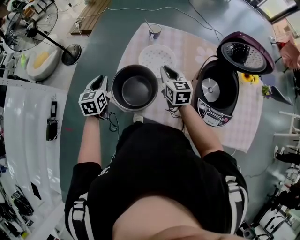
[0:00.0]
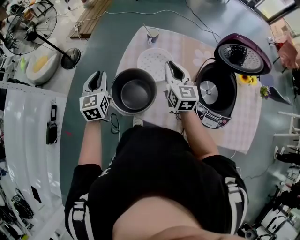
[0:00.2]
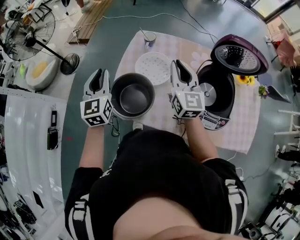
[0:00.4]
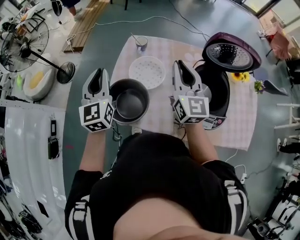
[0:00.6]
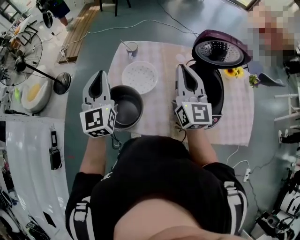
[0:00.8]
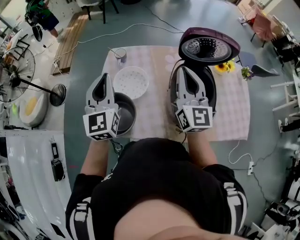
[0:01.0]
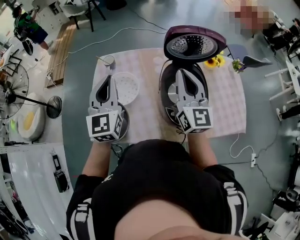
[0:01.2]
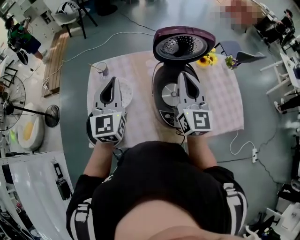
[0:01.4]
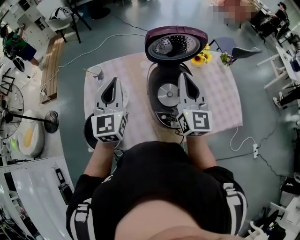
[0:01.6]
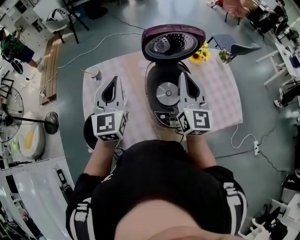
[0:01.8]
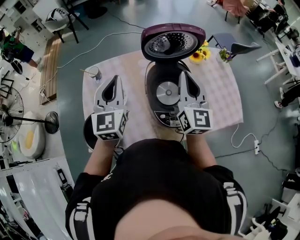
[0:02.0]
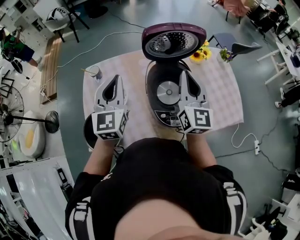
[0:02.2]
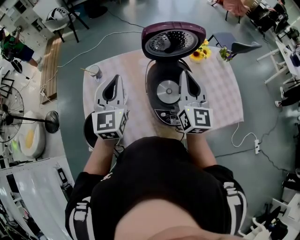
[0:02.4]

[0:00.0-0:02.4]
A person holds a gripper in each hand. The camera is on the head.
0:00.0 to 0:01.2: The left gripper heads to the right and upward, covering some 35 cm, and tips its fingers upward by roughly 30 degrees, while the right gripper heads upward and to the right, covering approximately 30 cm, and tilts its fingers about 30 degrees upward.
0:01.2 to 0:02.4: Both grippers travel together to the right, approximately 10 cm.

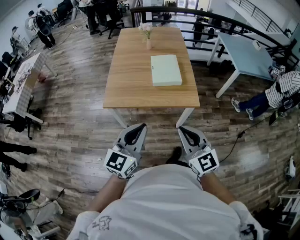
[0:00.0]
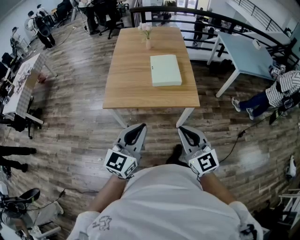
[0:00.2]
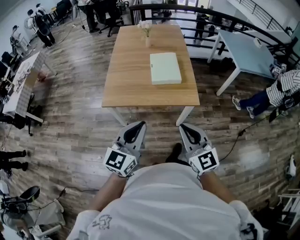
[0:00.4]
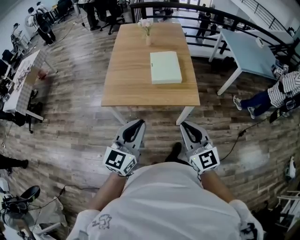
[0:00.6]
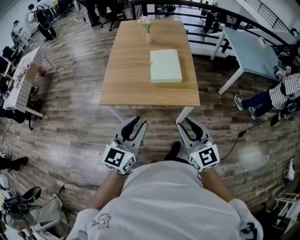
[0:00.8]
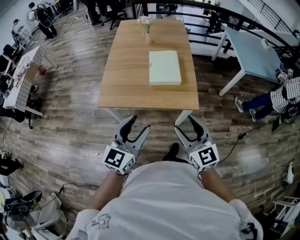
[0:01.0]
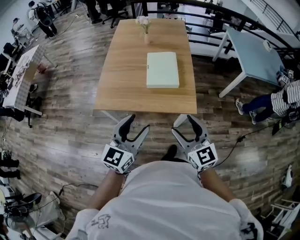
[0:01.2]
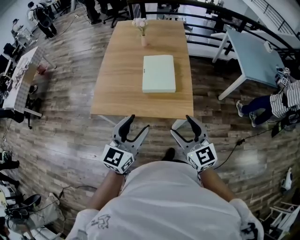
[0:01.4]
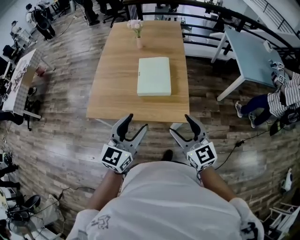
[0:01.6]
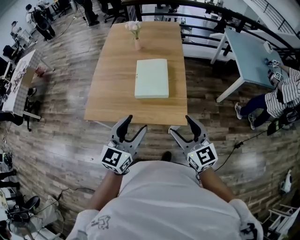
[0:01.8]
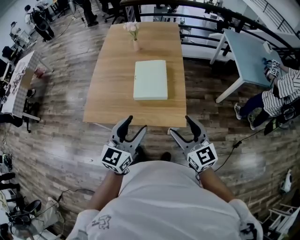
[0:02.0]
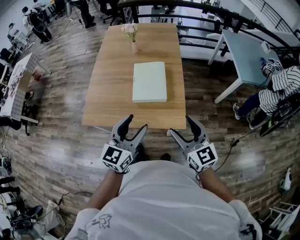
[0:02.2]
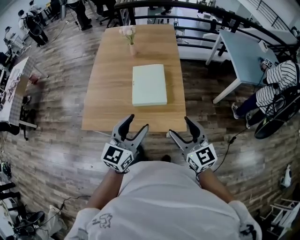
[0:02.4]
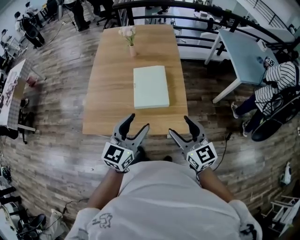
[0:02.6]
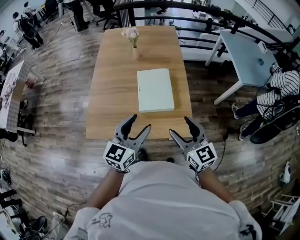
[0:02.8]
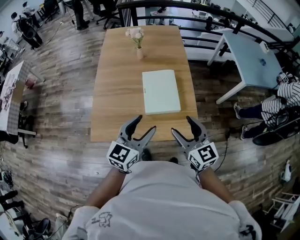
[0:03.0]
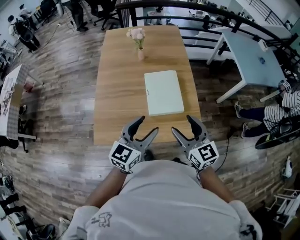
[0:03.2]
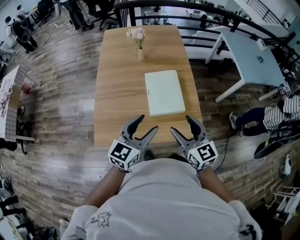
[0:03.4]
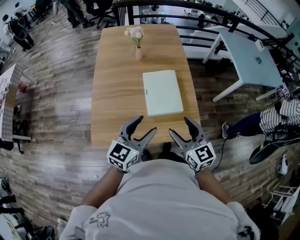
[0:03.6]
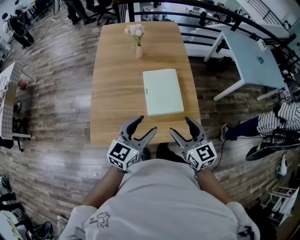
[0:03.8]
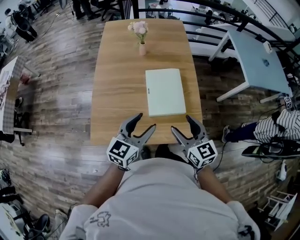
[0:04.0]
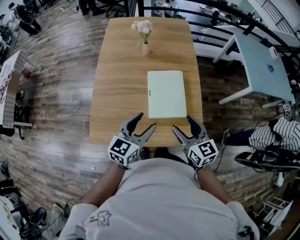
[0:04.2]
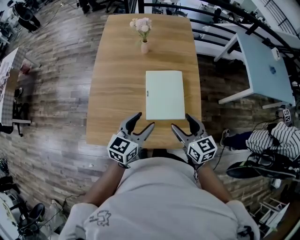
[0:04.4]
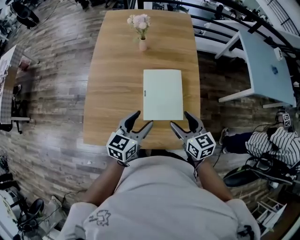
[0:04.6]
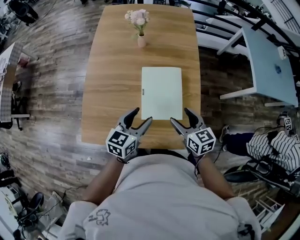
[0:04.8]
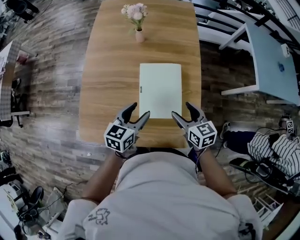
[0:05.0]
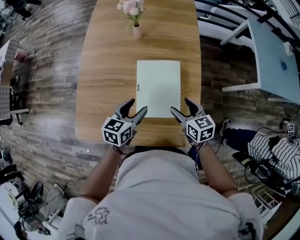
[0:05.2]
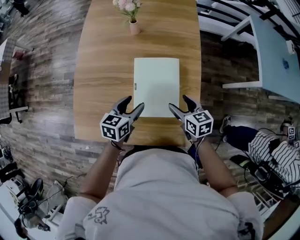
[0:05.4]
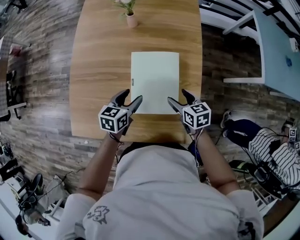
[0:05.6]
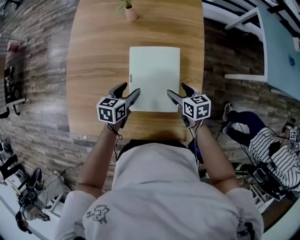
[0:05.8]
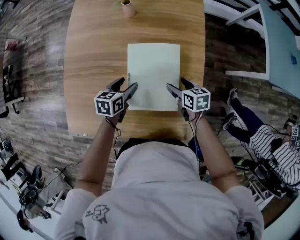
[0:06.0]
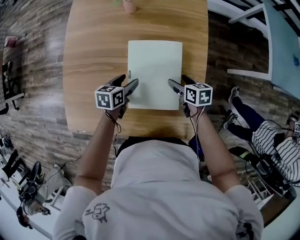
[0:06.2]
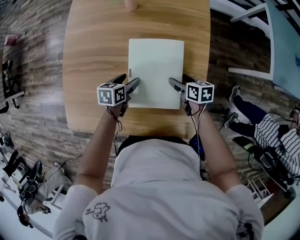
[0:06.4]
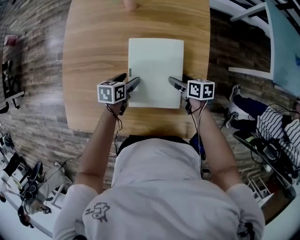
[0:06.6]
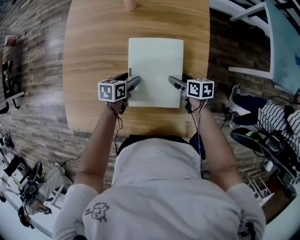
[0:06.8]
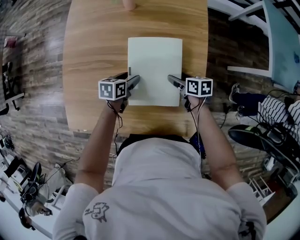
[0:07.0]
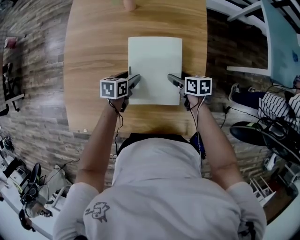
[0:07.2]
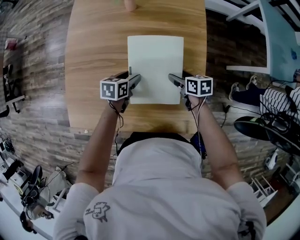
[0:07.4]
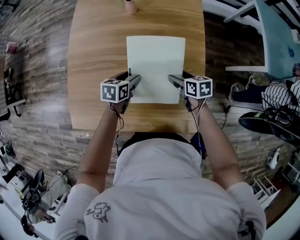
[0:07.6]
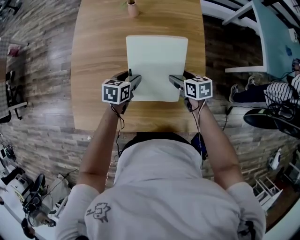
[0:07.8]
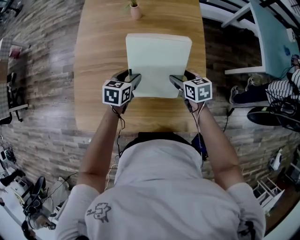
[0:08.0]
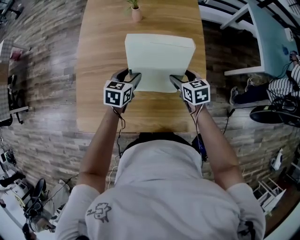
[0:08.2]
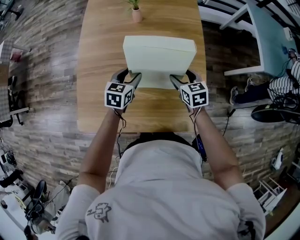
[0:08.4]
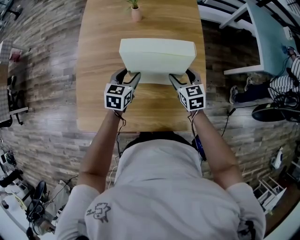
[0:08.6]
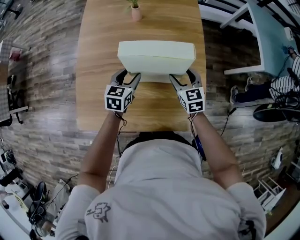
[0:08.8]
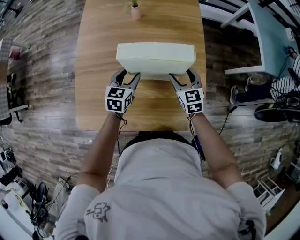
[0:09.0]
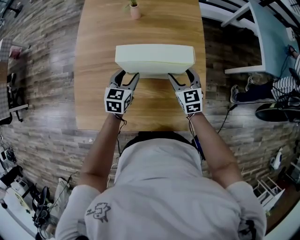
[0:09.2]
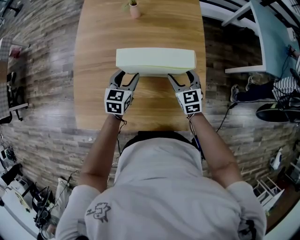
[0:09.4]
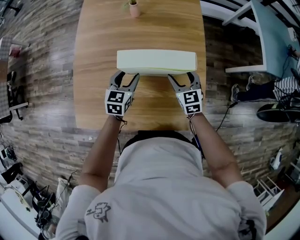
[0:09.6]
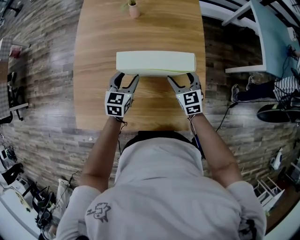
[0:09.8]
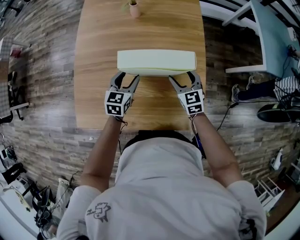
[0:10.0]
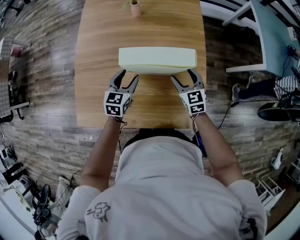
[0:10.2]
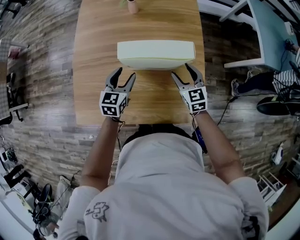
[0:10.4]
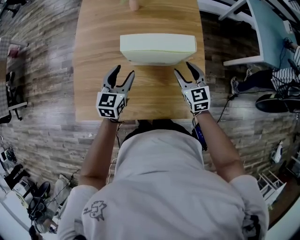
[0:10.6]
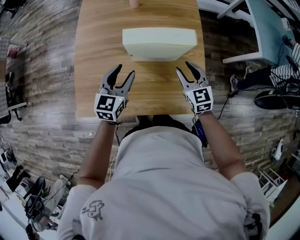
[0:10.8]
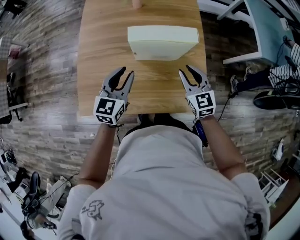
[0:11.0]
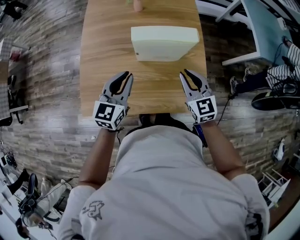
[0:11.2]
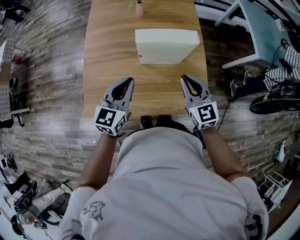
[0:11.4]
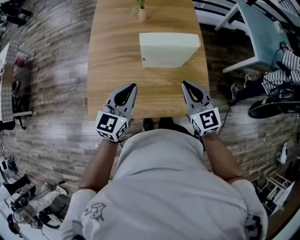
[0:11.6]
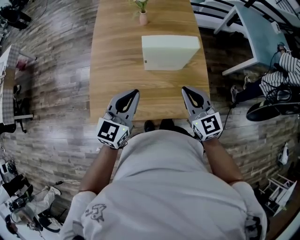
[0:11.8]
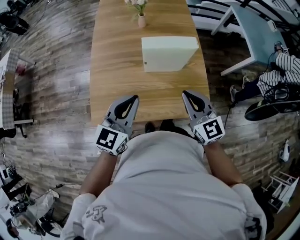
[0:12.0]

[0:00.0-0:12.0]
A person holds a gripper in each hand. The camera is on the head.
0:00.0 to 0:01.6: The grippers both shift forward and to the right by approximately 25 cm. The right gripper opens its fingers, while the left gripper opens.
0:01.6 to 0:03.0: The grippers both shift forward and to the left by approximately 15 cm.
0:03.0 to 0:04.4: The two grippers go about 15 cm forward and downward.
0:04.4 to 0:06.0: Both grippers move downward and forward, roughly 25 cm. The right gripper rotates approximately 30 degrees. Meanwhile the left gripper rotates some 30 degrees.
0:06.0 to 0:07.6: The grippers stay close to where they were, moving slightly.
0:07.6 to 0:09.0: Both grippers travel together upward, roughly 10 cm. The right gripper changes its angle by approximately 40 degrees; the left gripper turns by some 30 degrees.
0:09.0 to 0:10.4: The grippers move only a little.
0:10.4 to 0:12.0: The right gripper shifts some 30 cm upward, backward and to the left, and closes. Meanwhile the left gripper shifts approximately 25 cm upward and backward, swivels about 20 degrees, and closes up.

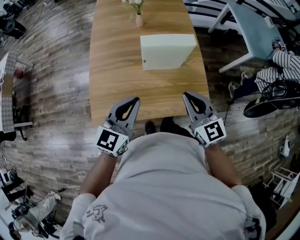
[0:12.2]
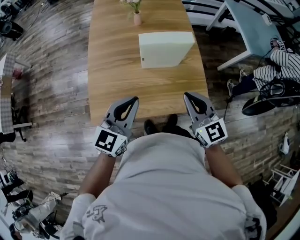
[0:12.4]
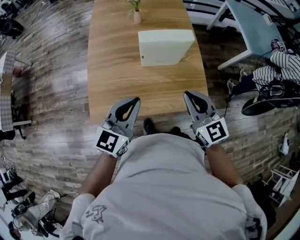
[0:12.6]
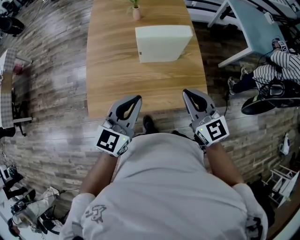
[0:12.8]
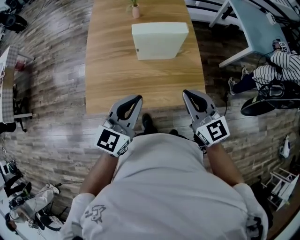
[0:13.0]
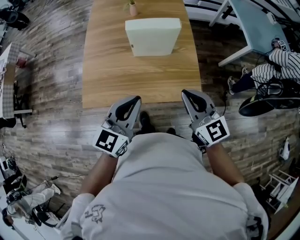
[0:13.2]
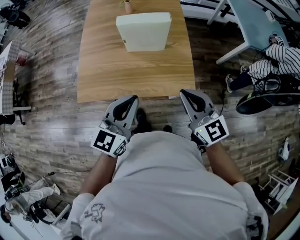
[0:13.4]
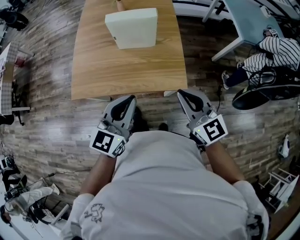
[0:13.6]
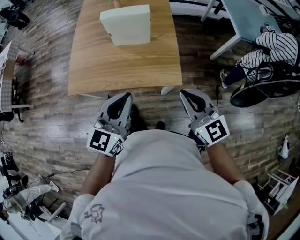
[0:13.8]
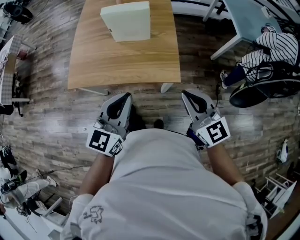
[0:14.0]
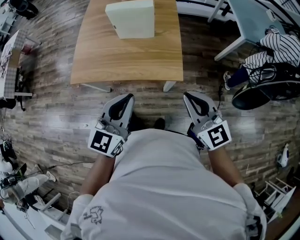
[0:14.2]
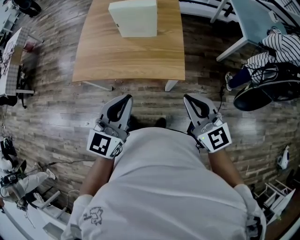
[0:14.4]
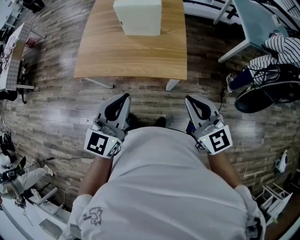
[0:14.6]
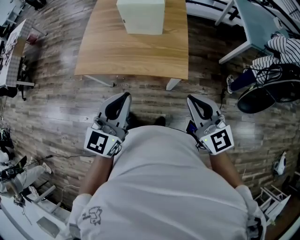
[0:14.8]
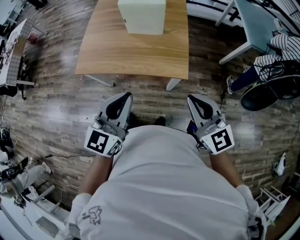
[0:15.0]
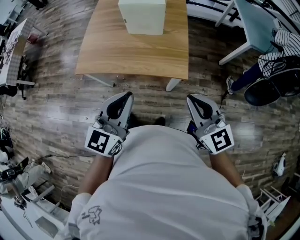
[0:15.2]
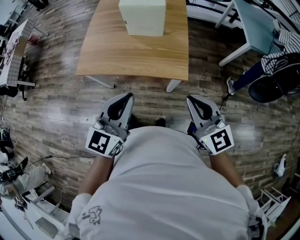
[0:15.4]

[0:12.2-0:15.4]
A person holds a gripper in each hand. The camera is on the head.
0:12.2 to 0:13.8: Both grippers travel together to the right and backward, roughly 25 cm.
0:13.8 to 0:15.4: Both grippers travel together backward, about 10 cm.

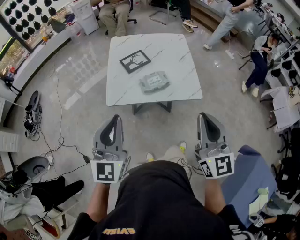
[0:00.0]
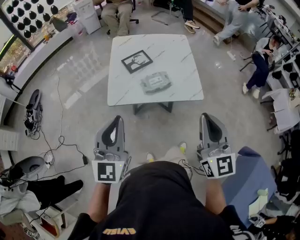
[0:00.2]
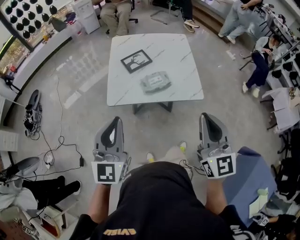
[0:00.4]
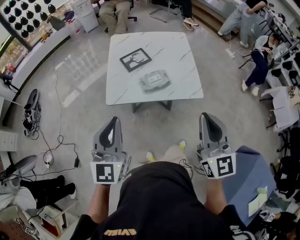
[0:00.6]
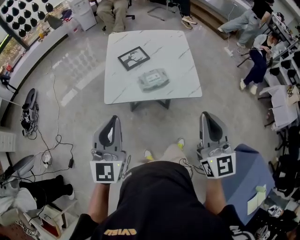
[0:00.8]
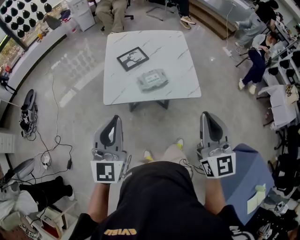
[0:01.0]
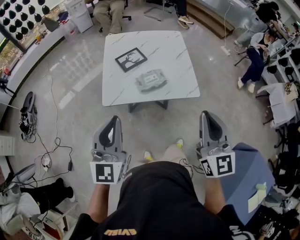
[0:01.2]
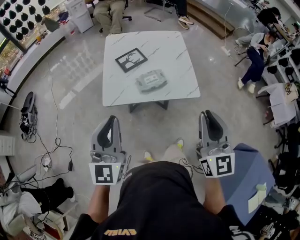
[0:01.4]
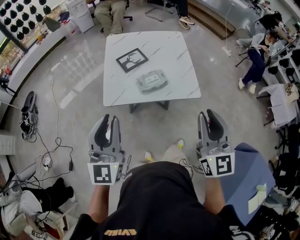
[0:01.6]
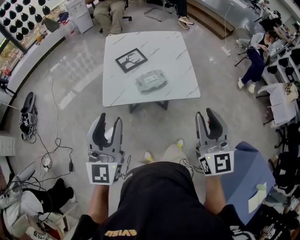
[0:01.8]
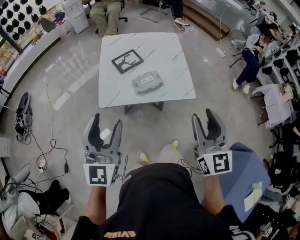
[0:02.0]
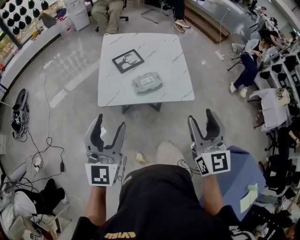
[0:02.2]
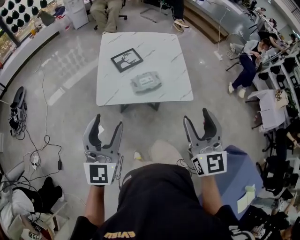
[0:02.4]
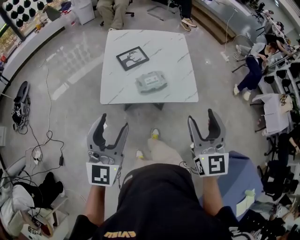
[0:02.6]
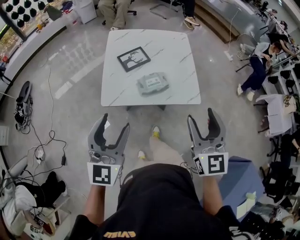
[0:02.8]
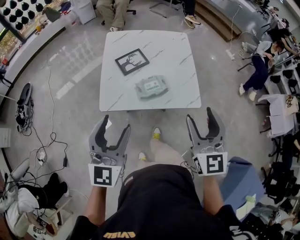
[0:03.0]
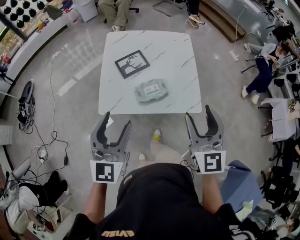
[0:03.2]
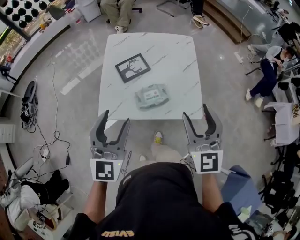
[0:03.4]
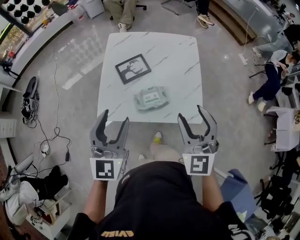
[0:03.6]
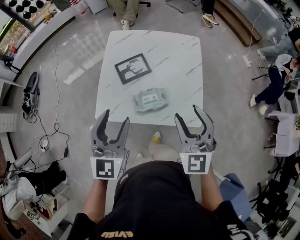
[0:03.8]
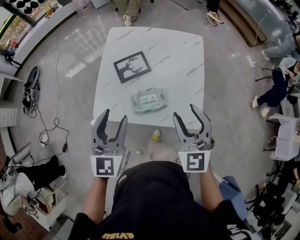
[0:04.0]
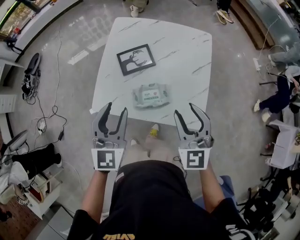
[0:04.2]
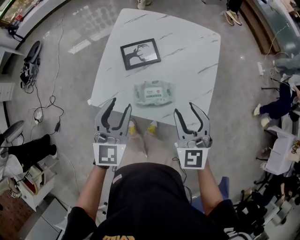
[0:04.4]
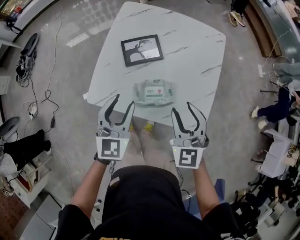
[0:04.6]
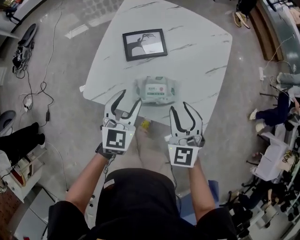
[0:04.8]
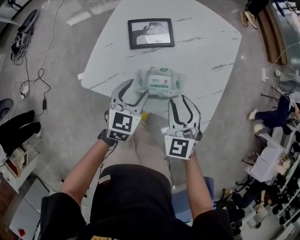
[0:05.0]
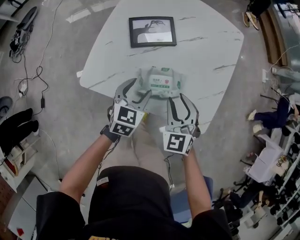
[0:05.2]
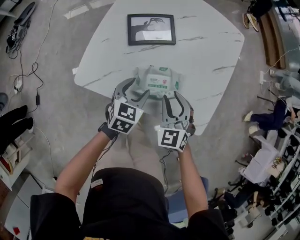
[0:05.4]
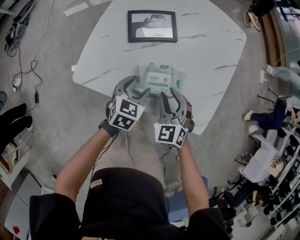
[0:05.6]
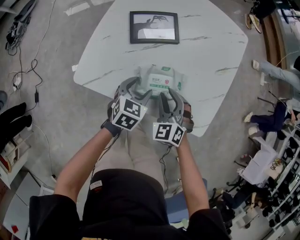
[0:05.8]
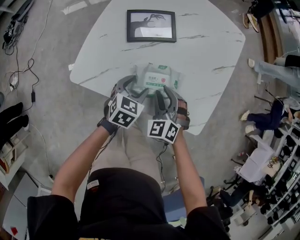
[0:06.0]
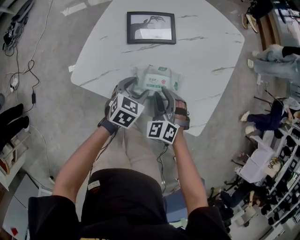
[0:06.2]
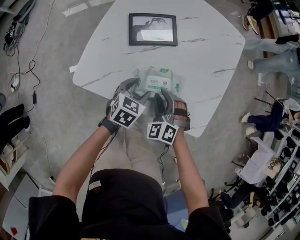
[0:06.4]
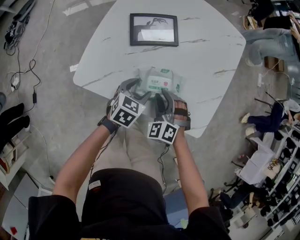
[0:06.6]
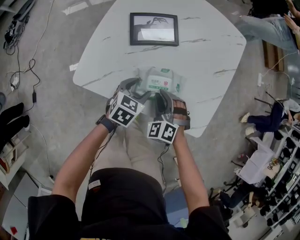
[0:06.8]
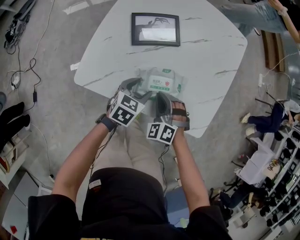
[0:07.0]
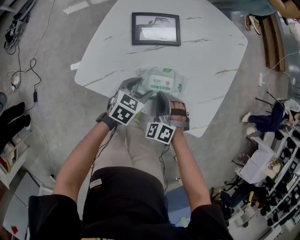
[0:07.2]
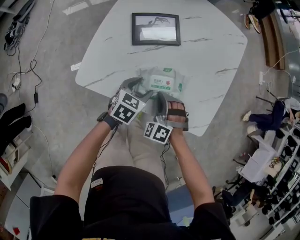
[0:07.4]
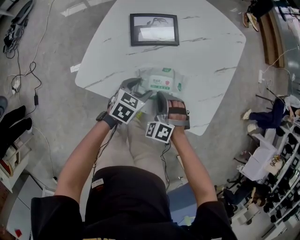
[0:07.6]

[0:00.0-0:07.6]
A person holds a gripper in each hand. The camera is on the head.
0:00.0 to 0:01.6: The grippers stay close to where they were, moving slightly.
0:01.6 to 0:03.0: Both grippers travel together forward, roughly 10 cm. The left gripper opens. The right gripper opens its fingers.
0:03.0 to 0:04.6: Both grippers move forward and downward, approximately 30 cm. The left gripper rotates approximately 30 degrees. The right gripper rotates about 30 degrees.
0:04.6 to 0:06.0: Both grippers move downward, some 25 cm. The left gripper swivels some 30 degrees. Meanwhile the right gripper turns by approximately 20 degrees.
0:06.0 to 0:07.6: The right gripper swivels about 20 degrees, and closes its fingers.
